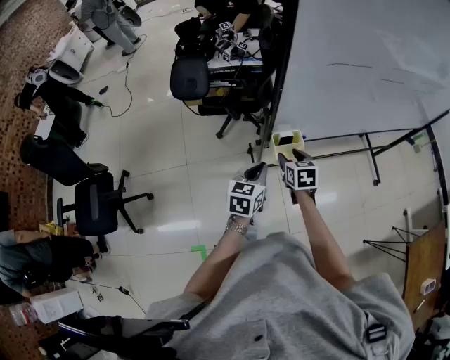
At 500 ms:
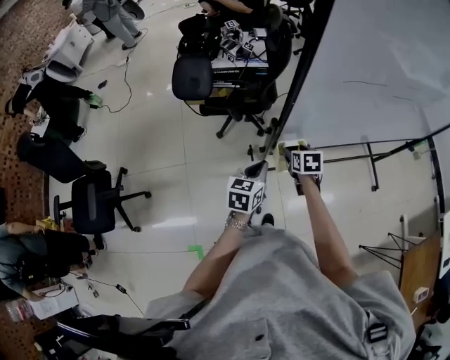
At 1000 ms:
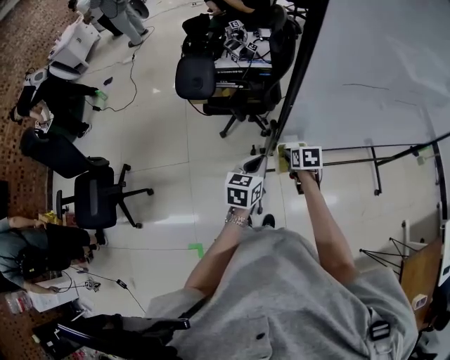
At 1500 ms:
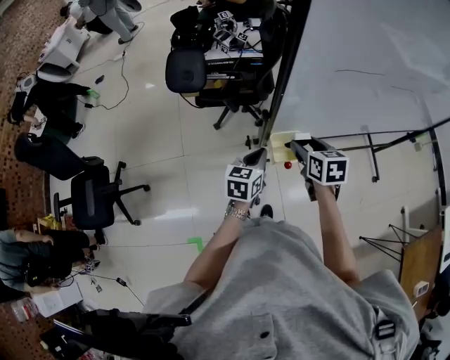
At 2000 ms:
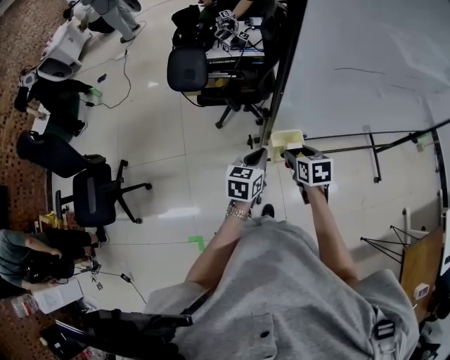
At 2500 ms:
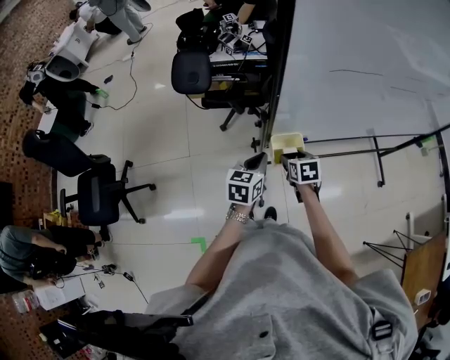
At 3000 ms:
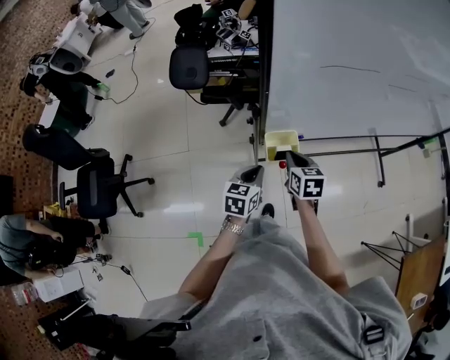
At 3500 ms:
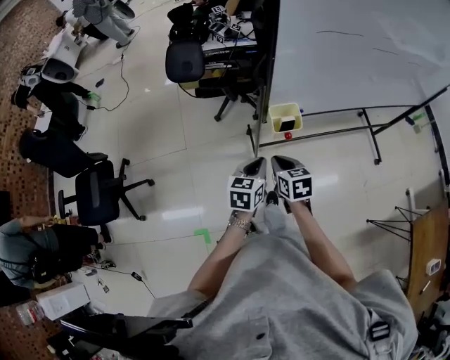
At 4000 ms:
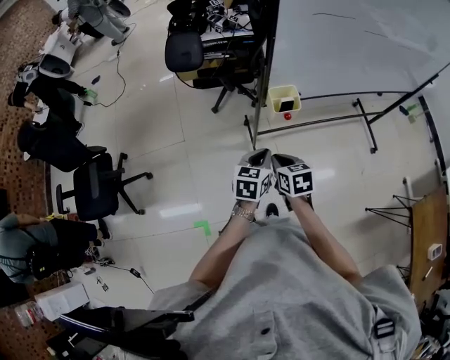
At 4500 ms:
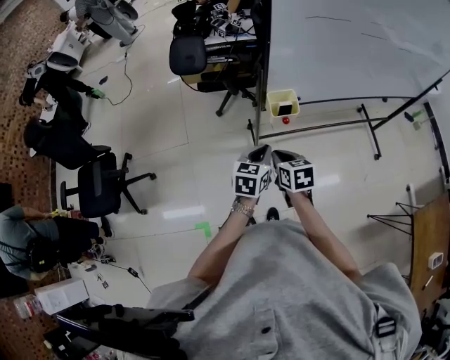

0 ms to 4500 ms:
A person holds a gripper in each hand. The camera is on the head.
0 ms to 2000 ms: The right gripper goes up and down, roughly 15 cm each way, reversing 2 times. Meanwhile the left gripper goes roughly 5 cm forward.
2000 ms to 4500 ms: Both grippers travel together backward, roughly 20 cm. The right gripper closes.

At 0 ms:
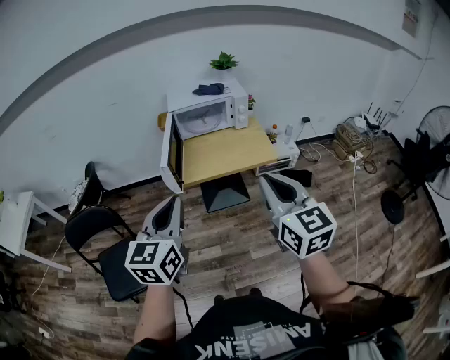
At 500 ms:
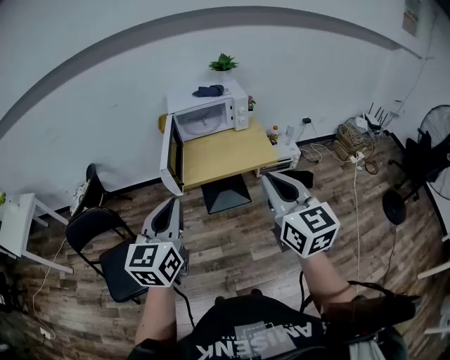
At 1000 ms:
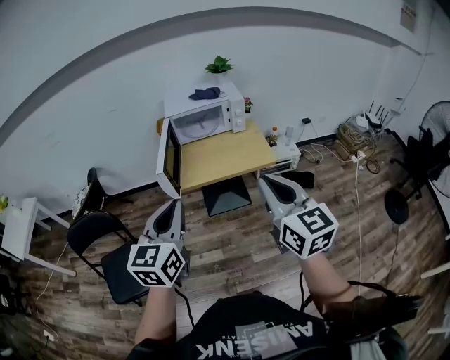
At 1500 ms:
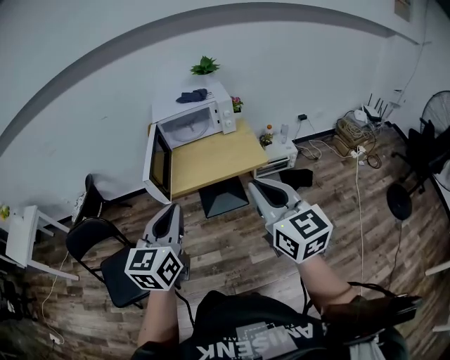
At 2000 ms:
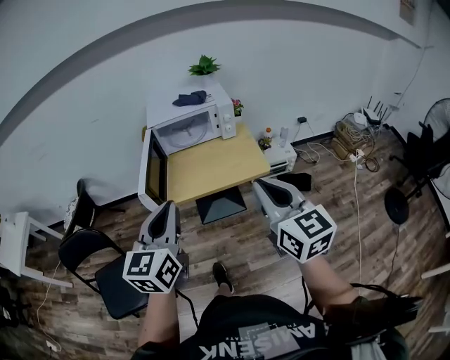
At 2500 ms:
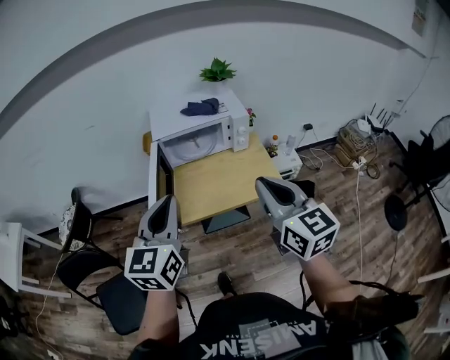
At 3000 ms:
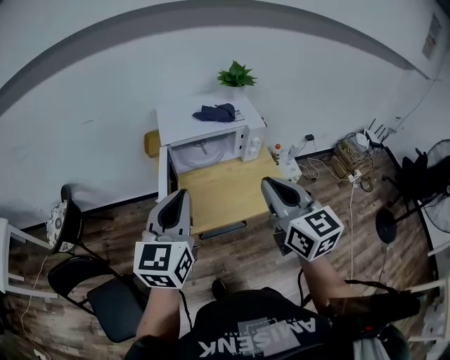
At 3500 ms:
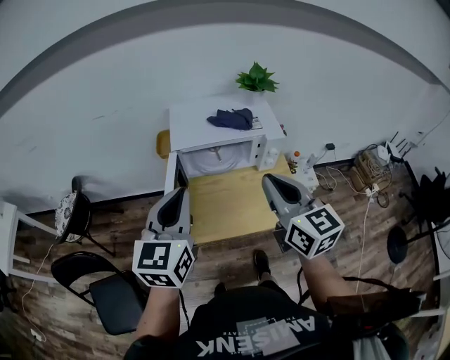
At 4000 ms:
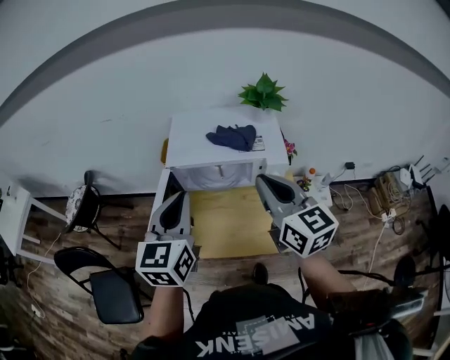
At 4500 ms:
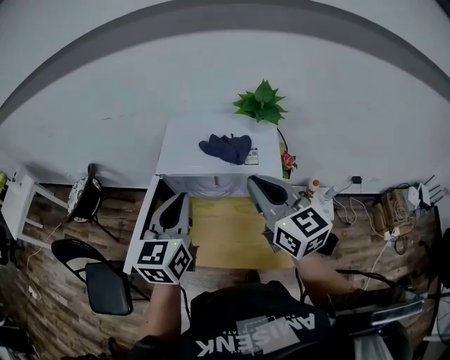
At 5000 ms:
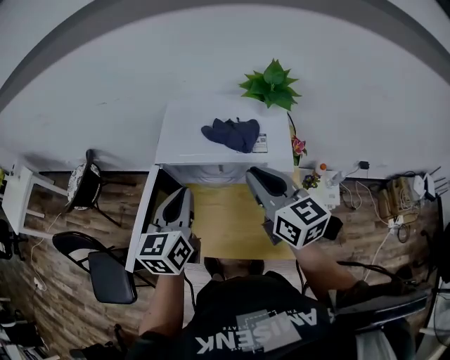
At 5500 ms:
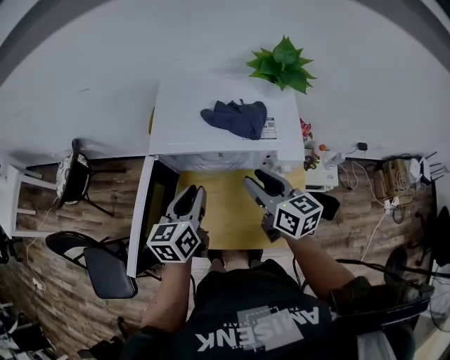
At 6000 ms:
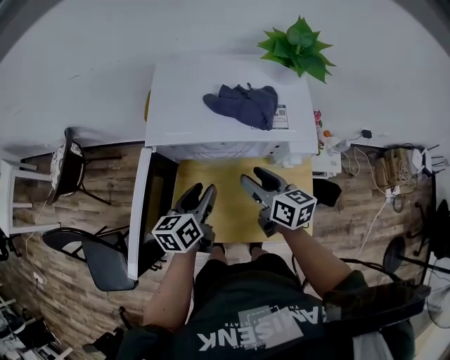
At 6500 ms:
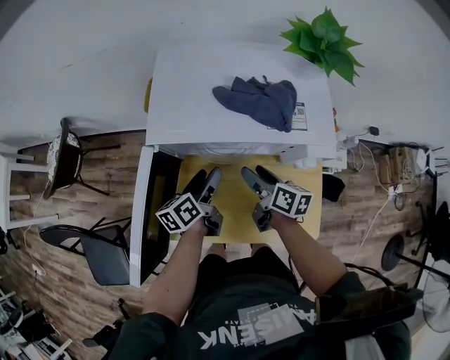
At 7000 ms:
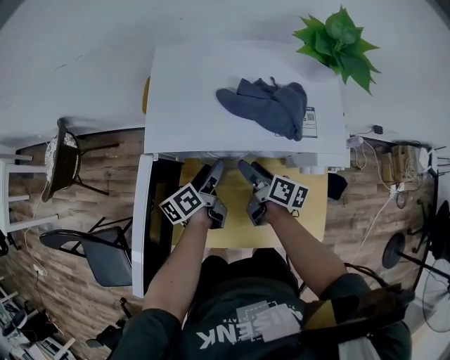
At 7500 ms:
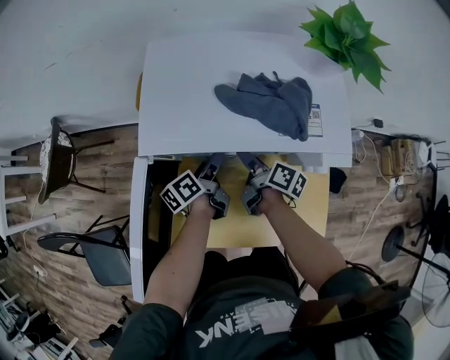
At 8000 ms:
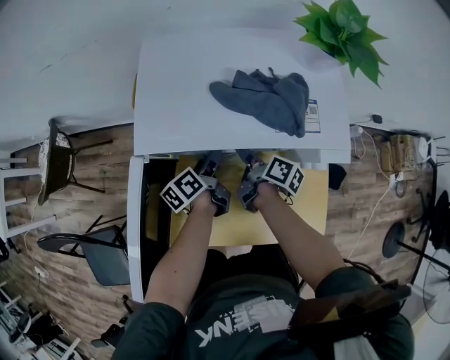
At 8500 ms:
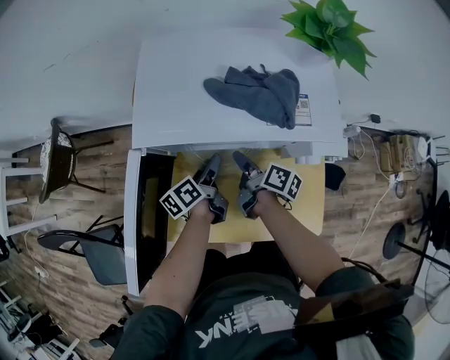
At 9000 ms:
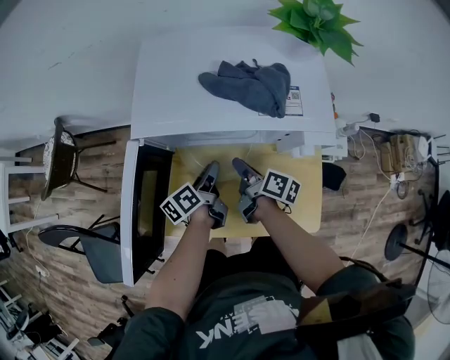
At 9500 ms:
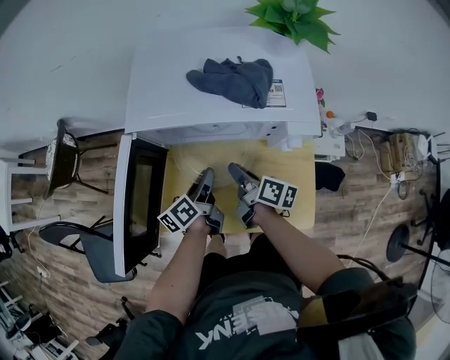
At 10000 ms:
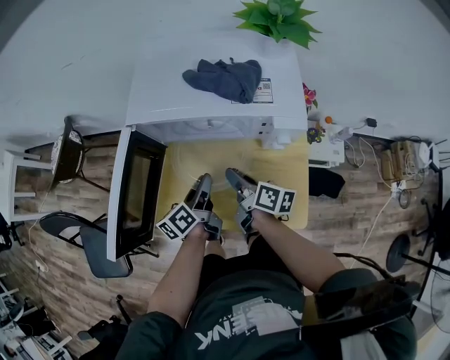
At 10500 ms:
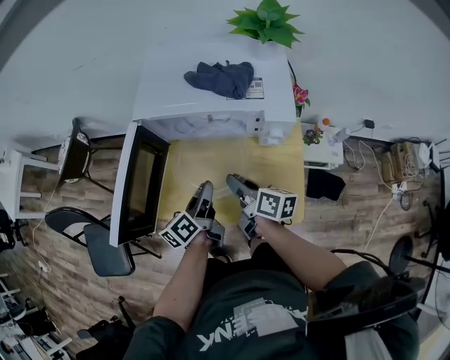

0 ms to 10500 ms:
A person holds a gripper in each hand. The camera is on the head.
0 ms to 2000 ms: The grippers both shift forward and to the right by approximately 10 cm.
2000 ms to 4000 ms: The two grippers go some 40 cm forward.
4000 ms to 6500 ms: Both grippers move downward and forward, some 35 cm. The right gripper twists approximately 50 degrees clockwise, seen from behind, and opens its fingers; the left gripper rotates around the line of its fingers by roughly 50 degrees, counterclockwise from behind, and opens its fingers.
6500 ms to 8500 ms: The left gripper heads downward, covering approximately 5 cm. Meanwhile the right gripper moves approximately 5 cm, rotates roughly 20 degrees, and closes.
8500 ms to 10500 ms: The two grippers go approximately 15 cm backward and upward. The right gripper rotates approximately 30 degrees.

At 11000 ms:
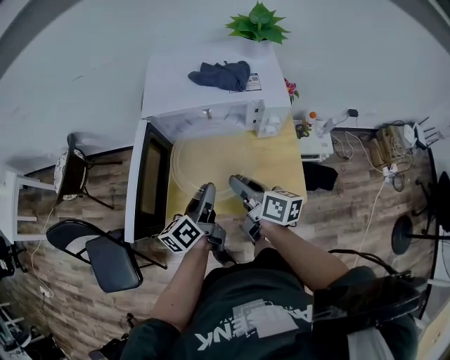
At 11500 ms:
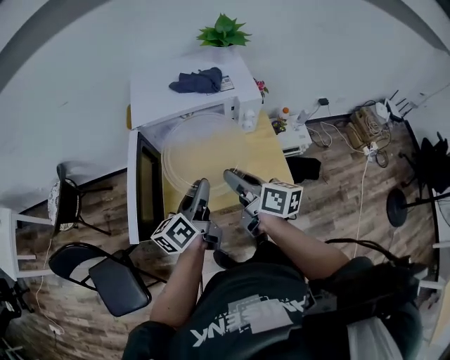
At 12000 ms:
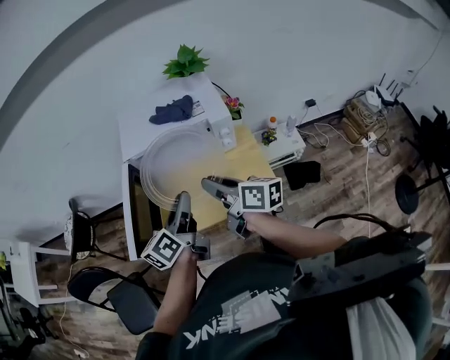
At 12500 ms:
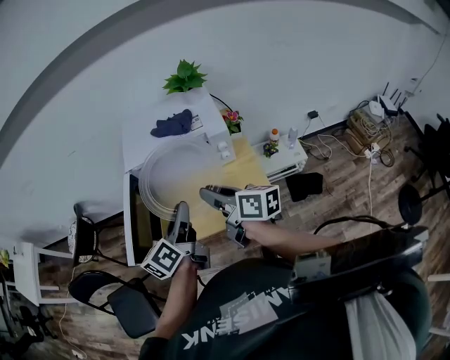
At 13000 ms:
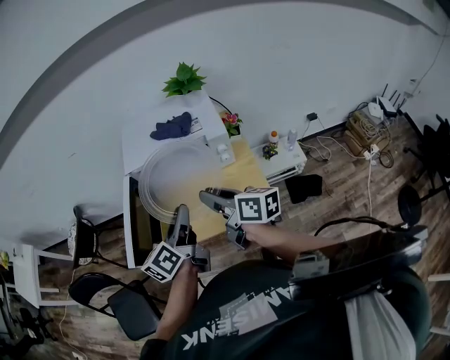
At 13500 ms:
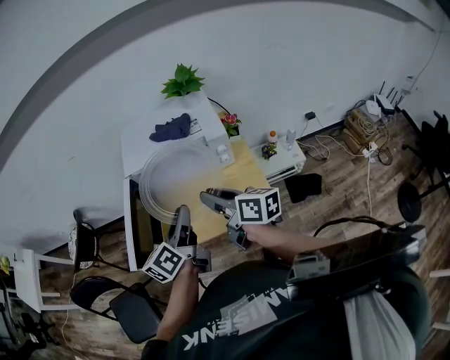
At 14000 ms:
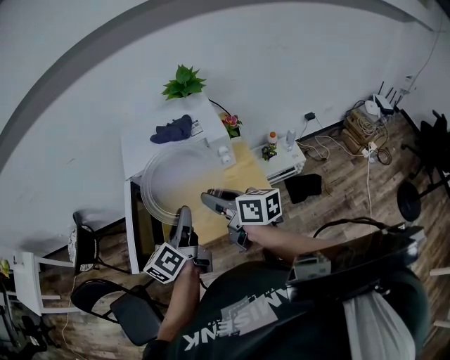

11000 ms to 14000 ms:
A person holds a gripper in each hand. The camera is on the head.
11000 ms to 12500 ms: Both grippers travel together upward, roughly 15 cm.
12500 ms to 14000 ms: The grippers move only a little.

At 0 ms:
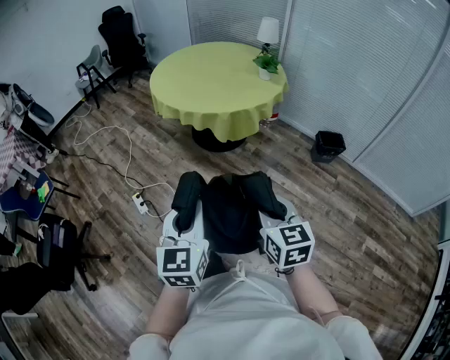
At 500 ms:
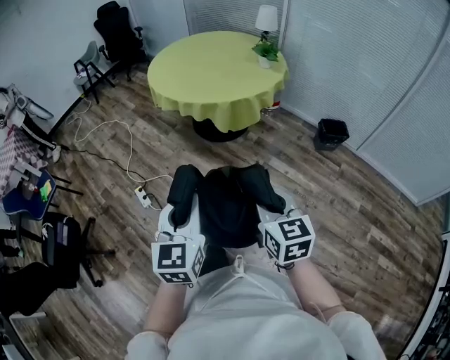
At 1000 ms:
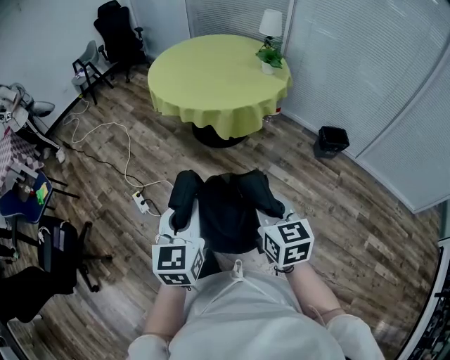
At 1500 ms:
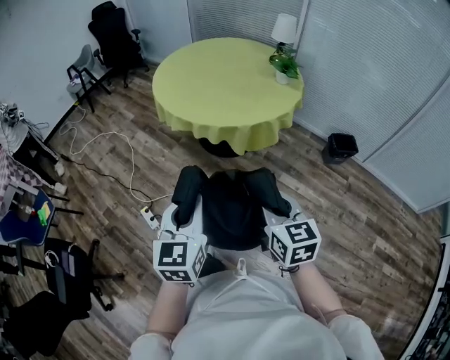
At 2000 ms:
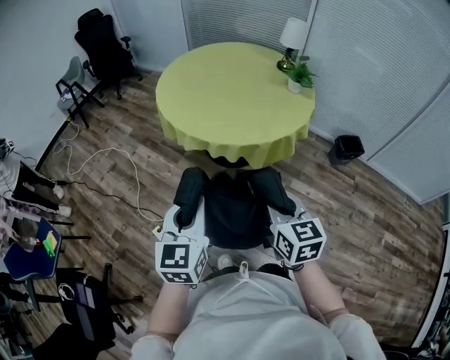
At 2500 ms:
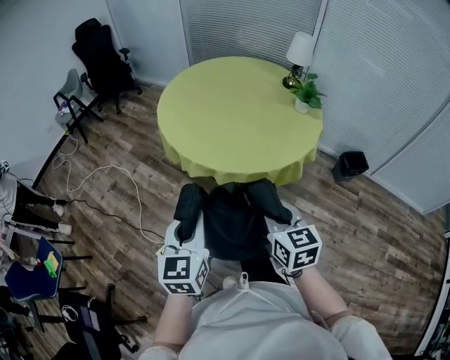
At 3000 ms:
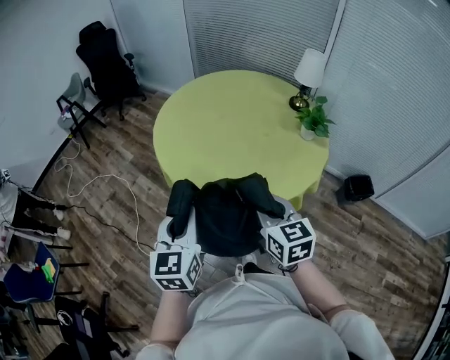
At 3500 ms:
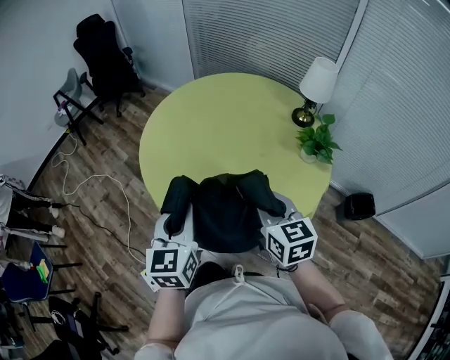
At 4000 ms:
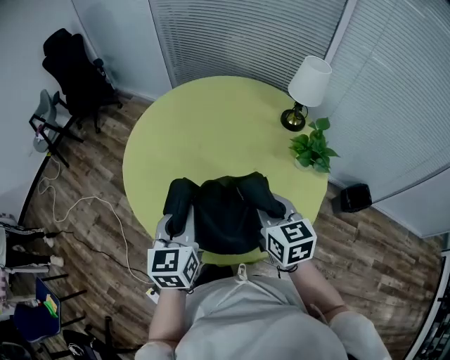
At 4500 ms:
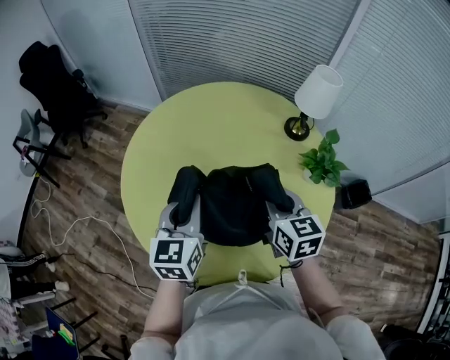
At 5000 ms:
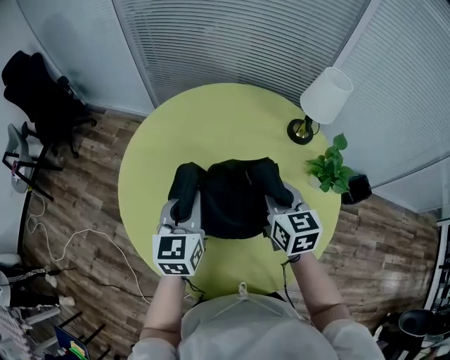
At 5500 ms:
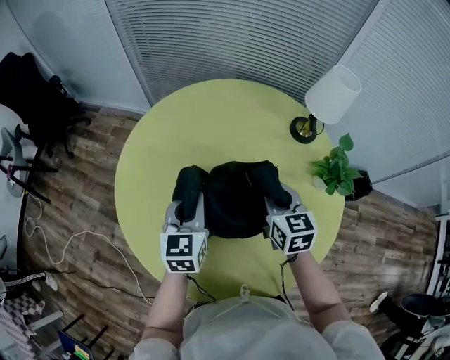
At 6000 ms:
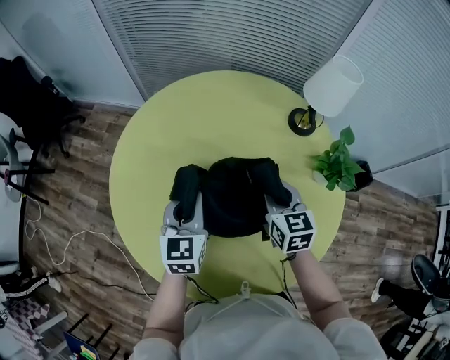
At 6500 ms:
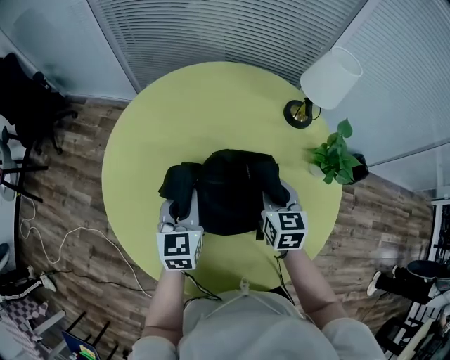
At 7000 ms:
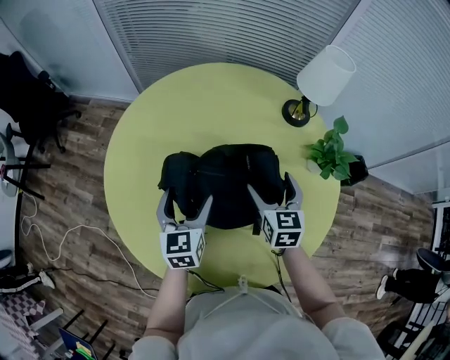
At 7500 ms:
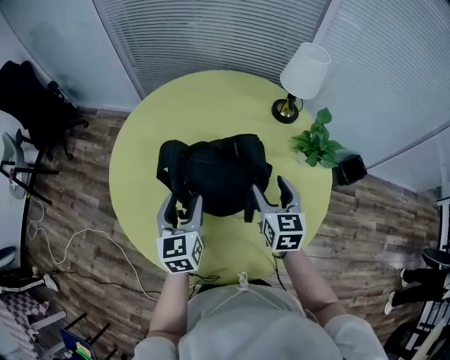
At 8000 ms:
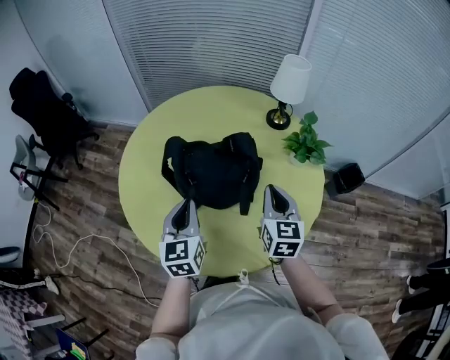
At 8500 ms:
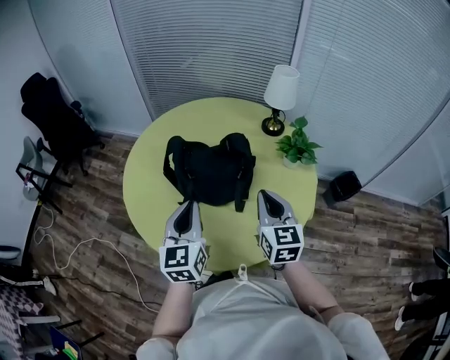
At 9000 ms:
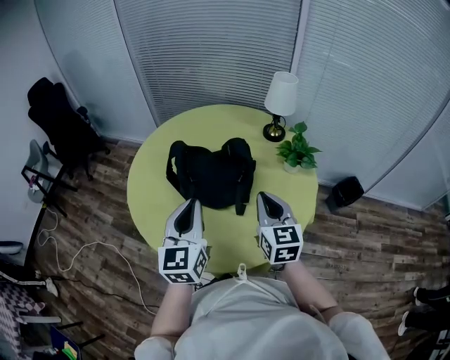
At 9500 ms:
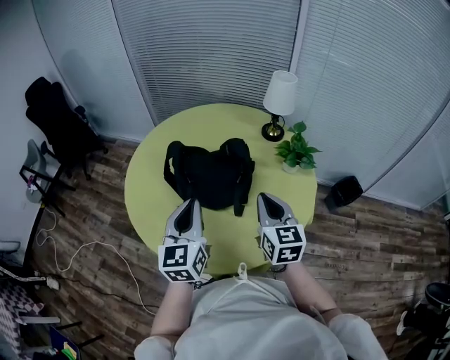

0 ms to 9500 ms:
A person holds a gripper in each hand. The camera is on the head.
0 ms to 2000 ms: The two grippers go approximately 40 cm forward and to the left.
2000 ms to 4000 ms: The two grippers travel together, forward, roughly 60 cm.
4000 ms to 5500 ms: The grippers both shift forward by some 25 cm.
5500 ms to 7500 ms: The right gripper travels backward and to the right by some 10 cm, and opens its fingers; the left gripper moves backward, approximately 10 cm, and opens its fingers.
7500 ms to 9500 ms: The two grippers go about 20 cm backward and upward. The left gripper closes its fingers. Meanwhile the right gripper closes its fingers.
